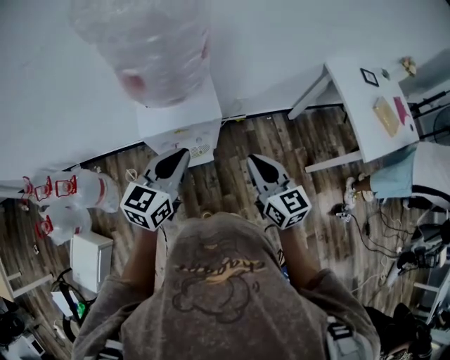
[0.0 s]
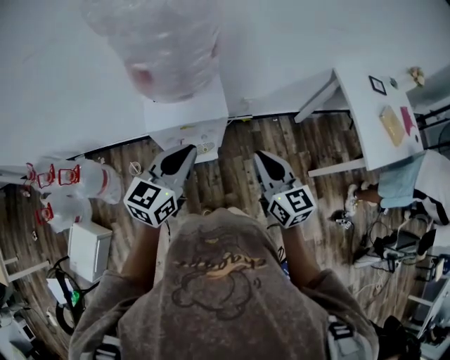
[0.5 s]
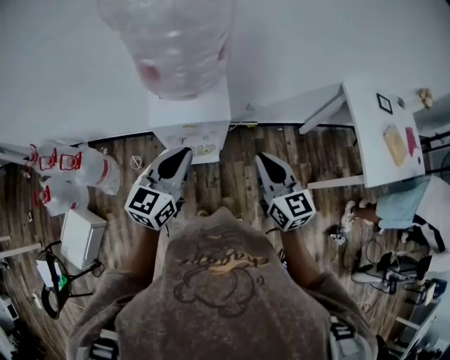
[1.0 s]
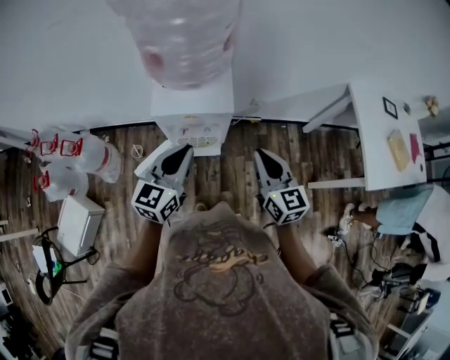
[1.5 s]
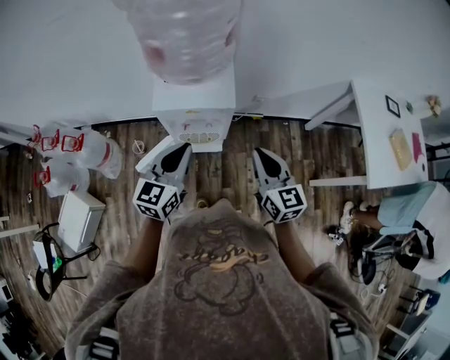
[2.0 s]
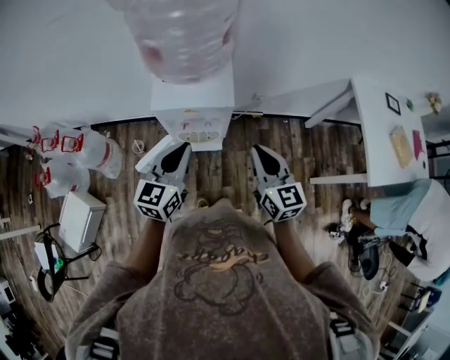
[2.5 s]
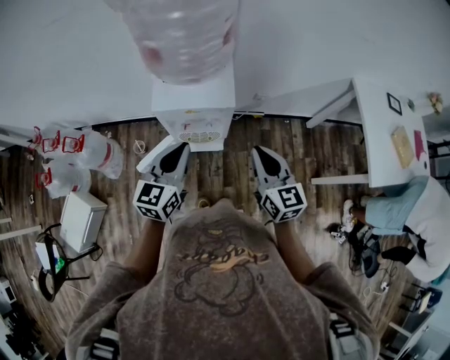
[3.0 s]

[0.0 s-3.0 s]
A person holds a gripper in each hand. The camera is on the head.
0.0 to 3.0 s: The grippers make only small movements.

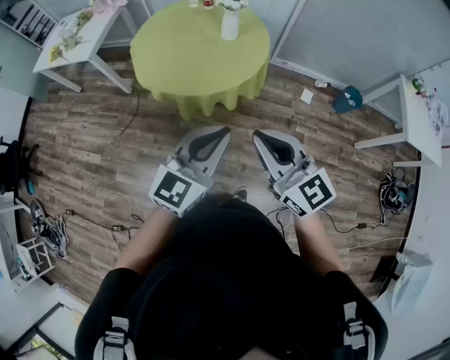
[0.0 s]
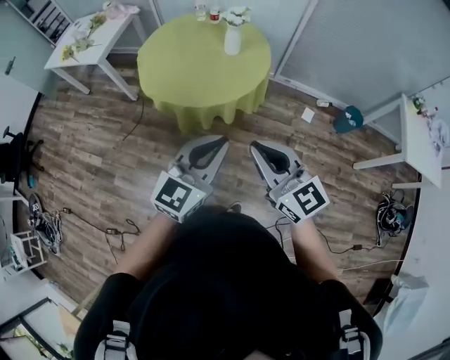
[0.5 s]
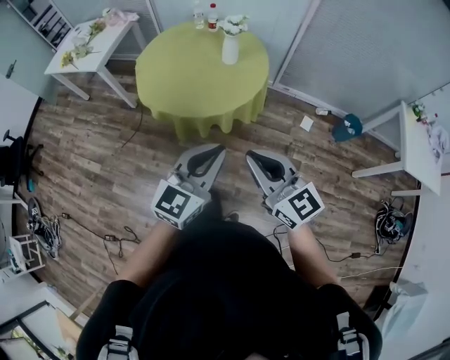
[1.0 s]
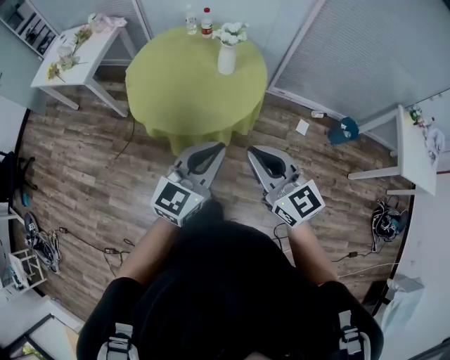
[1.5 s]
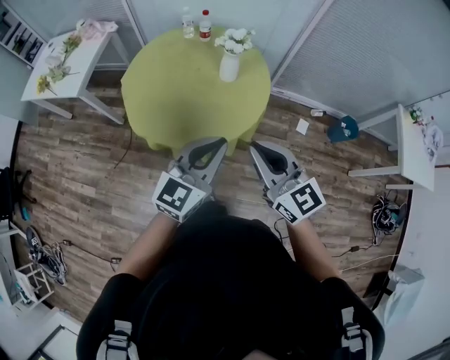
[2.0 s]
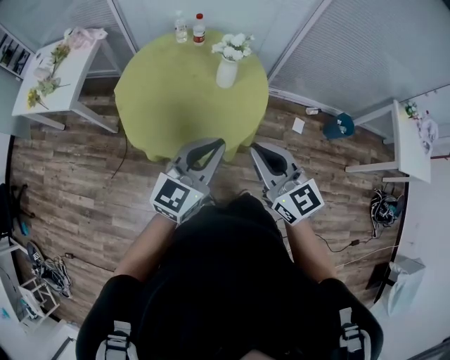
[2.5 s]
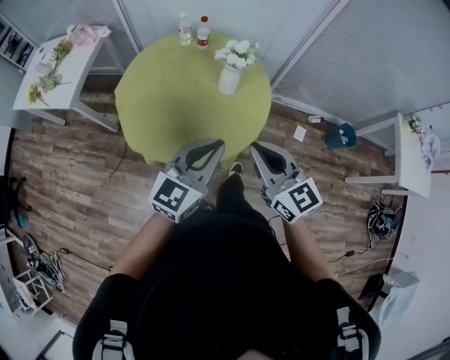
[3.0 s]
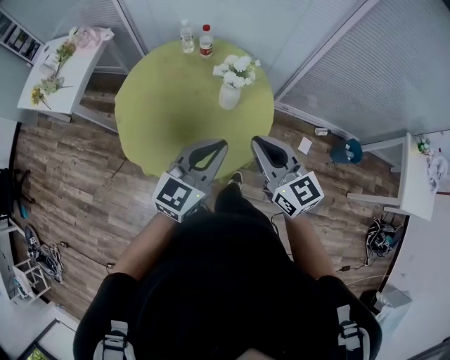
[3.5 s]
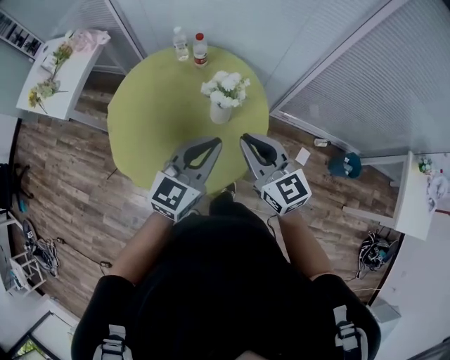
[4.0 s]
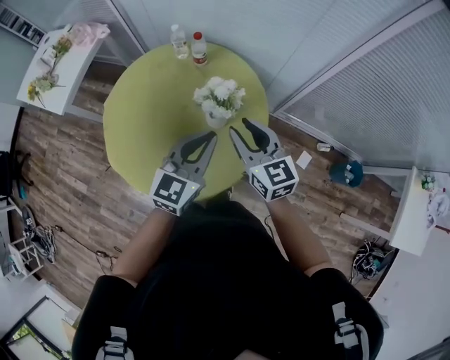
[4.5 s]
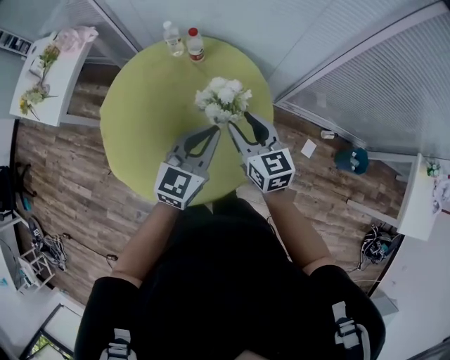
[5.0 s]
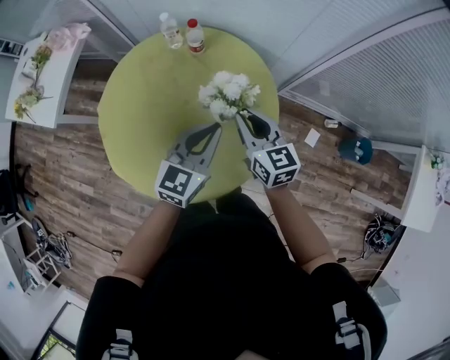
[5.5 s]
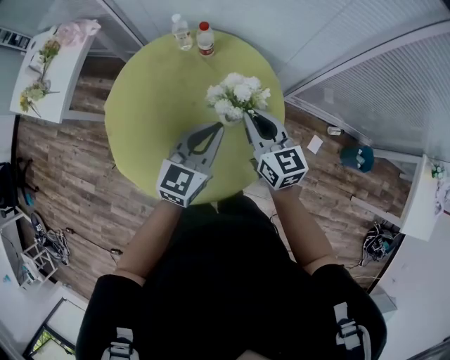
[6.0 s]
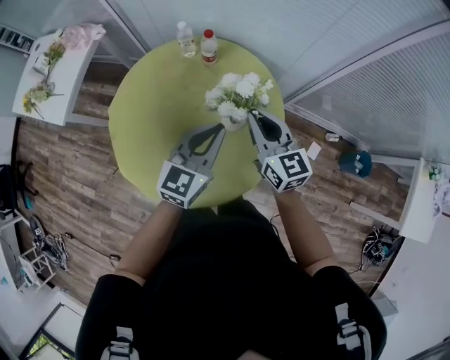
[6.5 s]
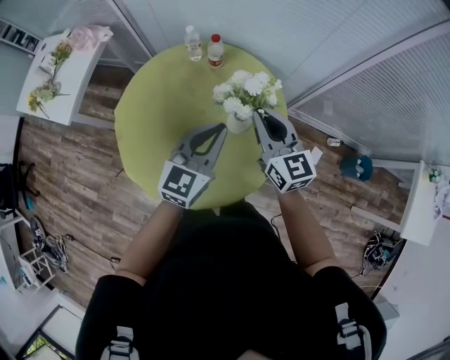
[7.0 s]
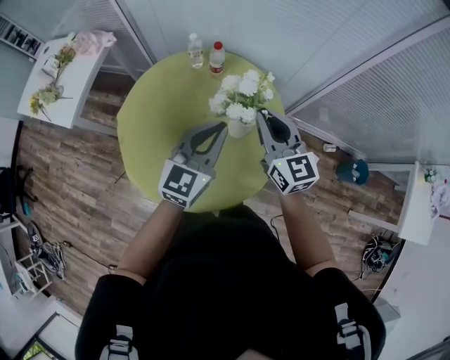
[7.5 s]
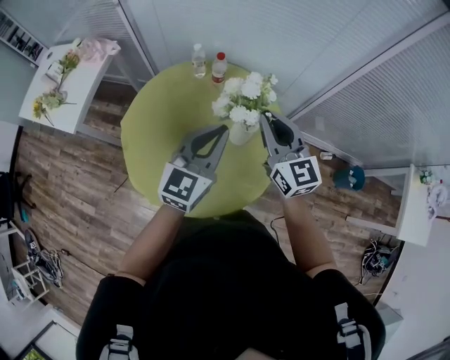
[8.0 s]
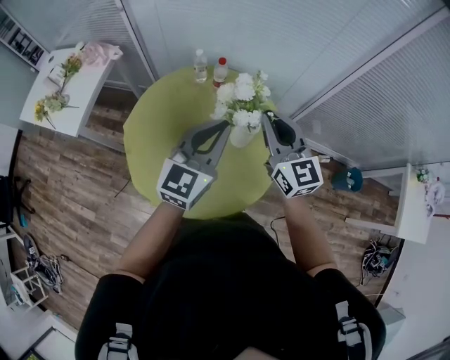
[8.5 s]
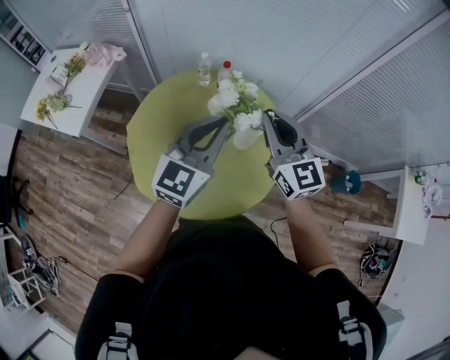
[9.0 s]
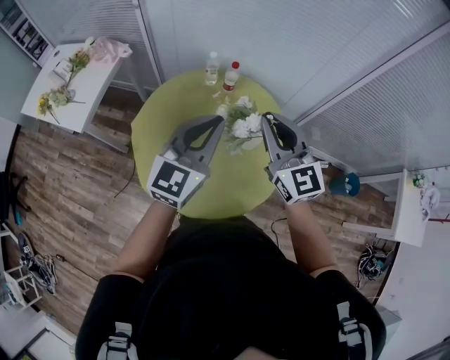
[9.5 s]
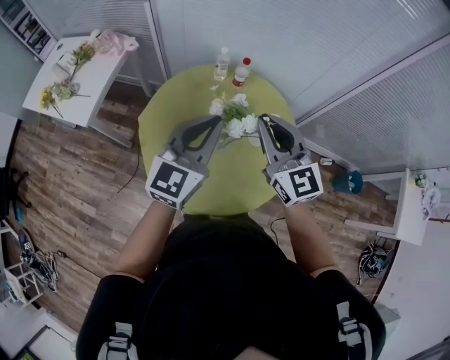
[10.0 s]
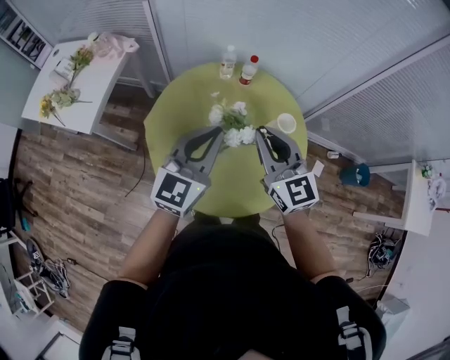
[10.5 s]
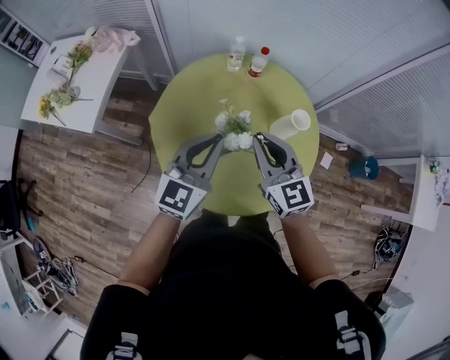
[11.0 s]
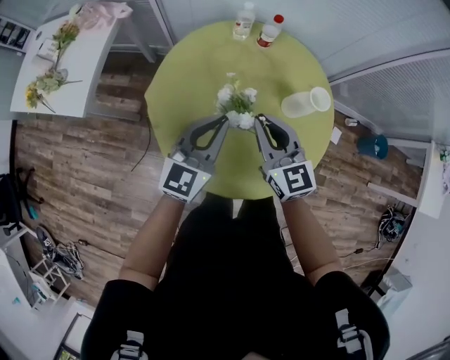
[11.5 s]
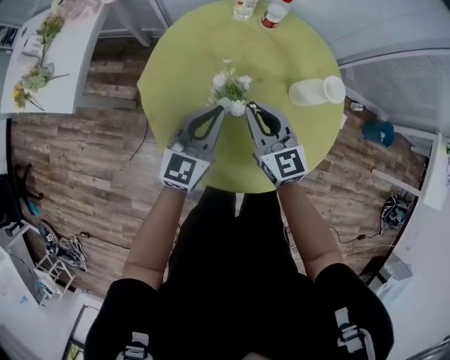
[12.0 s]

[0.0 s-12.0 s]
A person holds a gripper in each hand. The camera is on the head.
0.0 to 2.0 s: The two grippers go approximately 20 cm forward.
2.0 to 4.0 s: The two grippers go about 30 cm forward.
4.0 to 6.0 s: Both grippers travel together forward and downward, roughly 15 cm. The right gripper opens, then closes once more.
6.0 to 8.0 s: The left gripper is displaced upward and to the left by some 15 cm. Meanwhile the right gripper goes approximately 15 cm upward.
8.0 to 10.0 s: The left gripper heads to the left and upward, covering about 15 cm, while the right gripper travels to the left and backward by some 15 cm.
10.0 to 12.0 s: The right gripper shifts roughly 30 cm downward and to the left; the left gripper travels downward by some 25 cm.

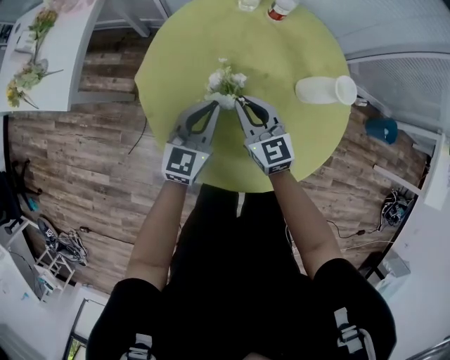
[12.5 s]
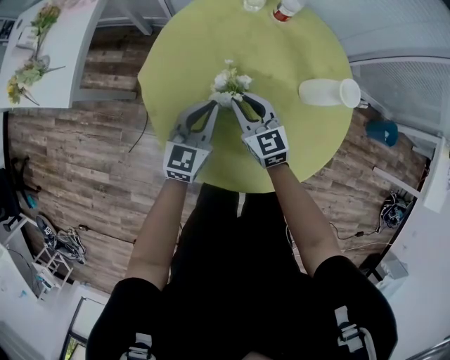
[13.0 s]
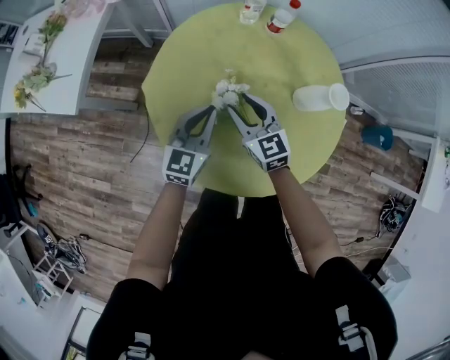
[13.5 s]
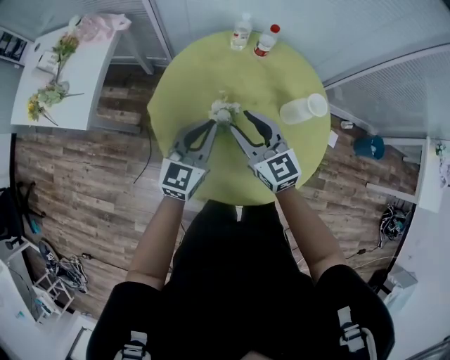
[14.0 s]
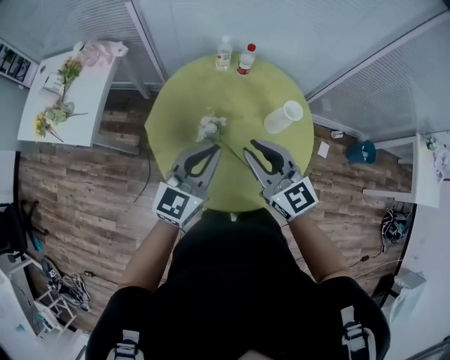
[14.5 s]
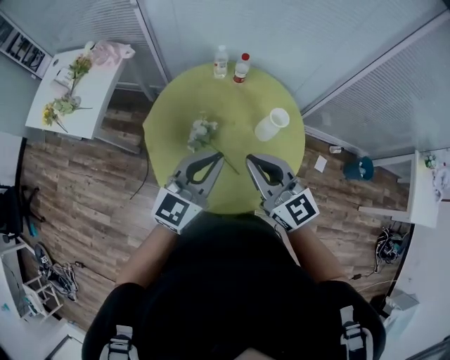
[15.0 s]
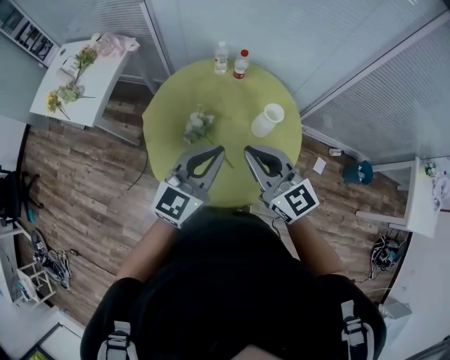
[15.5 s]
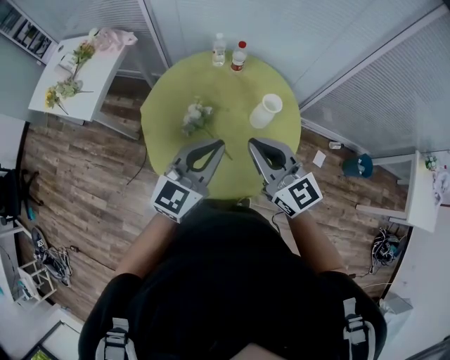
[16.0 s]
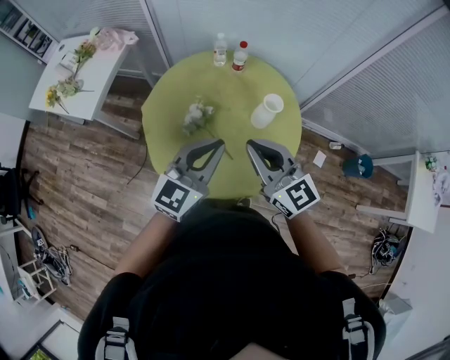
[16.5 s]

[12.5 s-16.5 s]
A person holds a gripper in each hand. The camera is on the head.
12.5 to 14.5 s: The right gripper is displaced upward and backward by roughly 25 cm; the left gripper shifts approximately 25 cm upward.
14.5 to 16.5 s: The left gripper travels to the right, backward and upward by some 15 cm. Meanwhile the right gripper travels to the right and backward by about 10 cm.

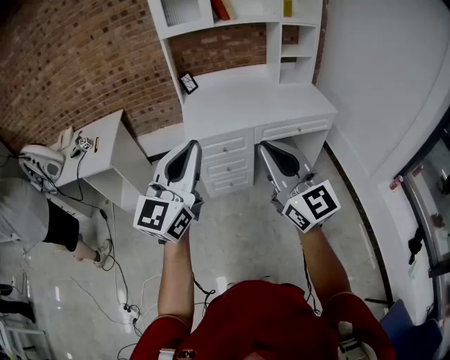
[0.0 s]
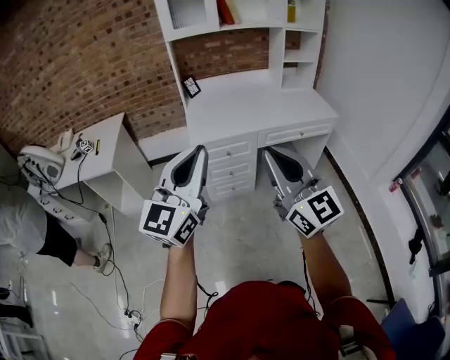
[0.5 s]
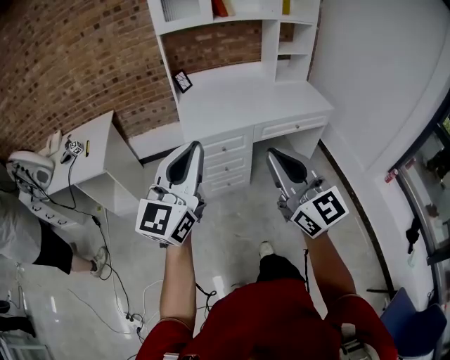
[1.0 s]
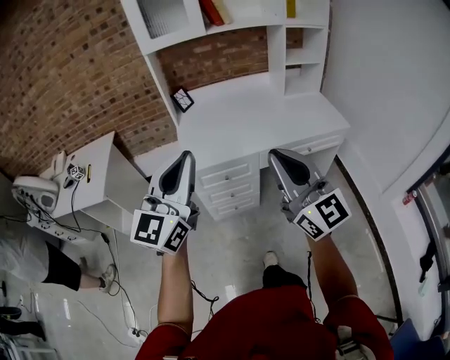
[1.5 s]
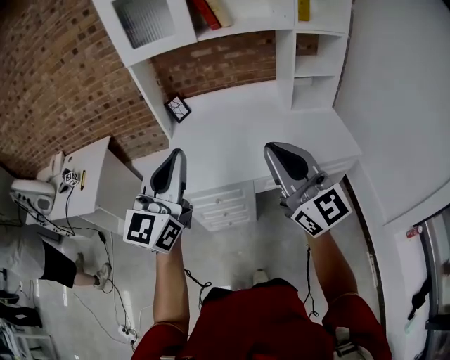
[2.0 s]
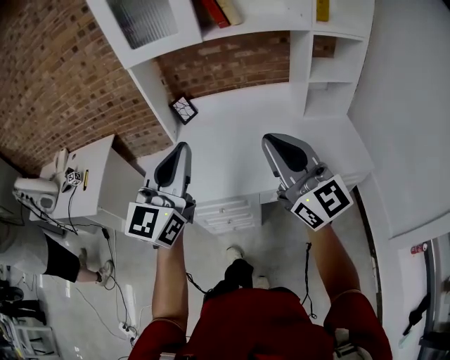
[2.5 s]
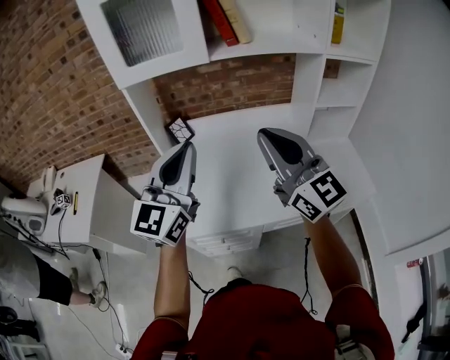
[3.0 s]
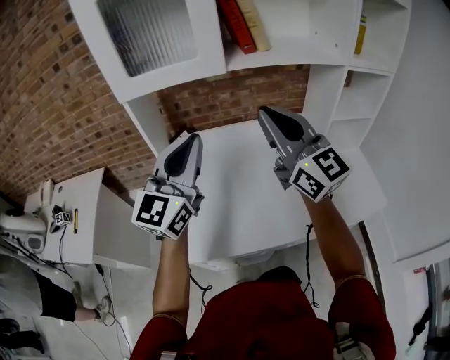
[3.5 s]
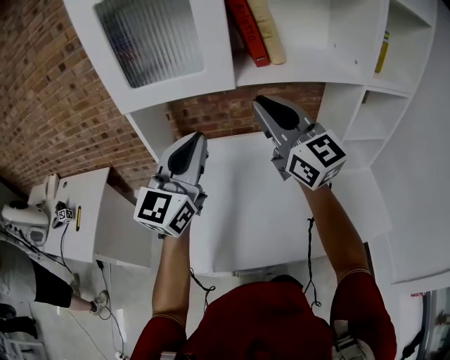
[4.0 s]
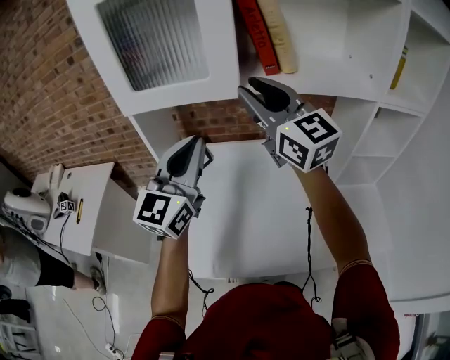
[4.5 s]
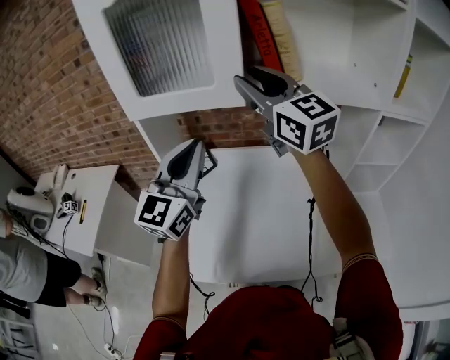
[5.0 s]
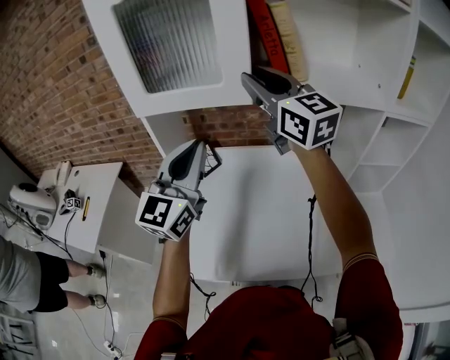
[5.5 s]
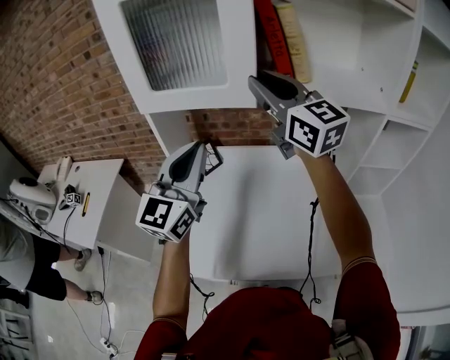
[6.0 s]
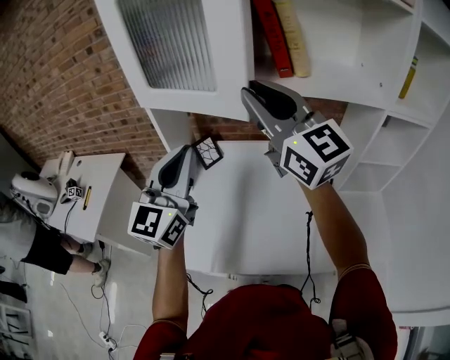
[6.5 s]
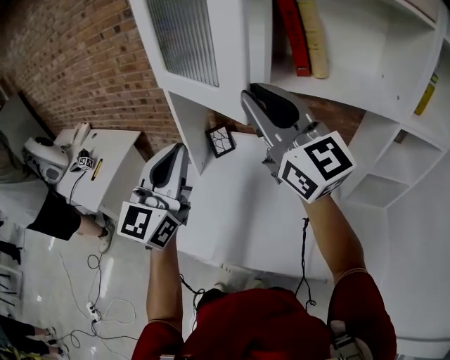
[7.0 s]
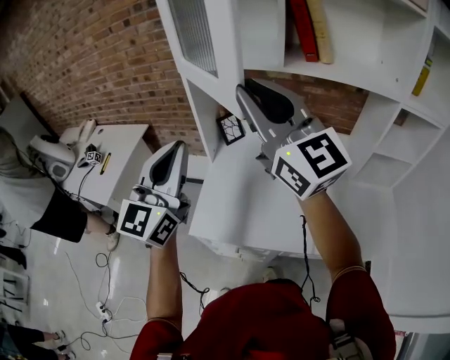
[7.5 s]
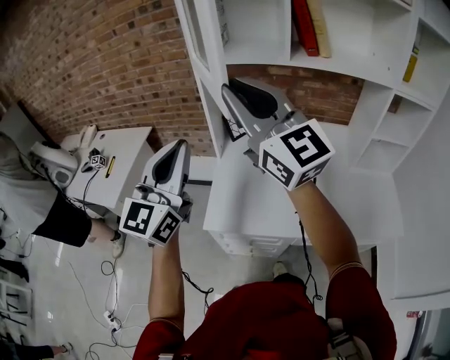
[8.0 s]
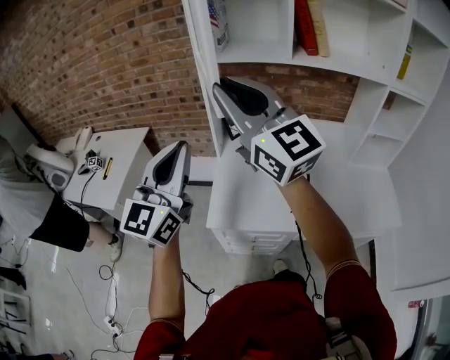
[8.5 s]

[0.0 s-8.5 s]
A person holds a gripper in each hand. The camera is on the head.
0.0 to 2.0 s: The two grippers go some 35 cm forward.
2.0 to 4.0 s: Both grippers move forward, approximately 40 cm.
4.0 to 6.5 s: The right gripper is displaced upward by about 5 cm, and reaches about 10 cm forward, then returns.
6.5 to 8.5 s: The two grippers go some 25 cm to the left and backward.
